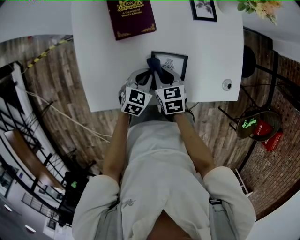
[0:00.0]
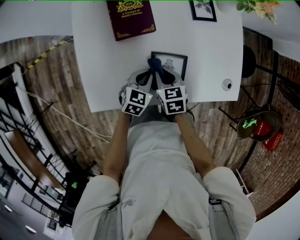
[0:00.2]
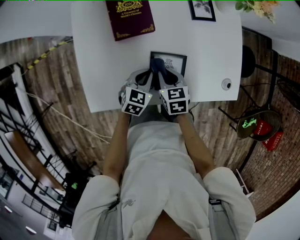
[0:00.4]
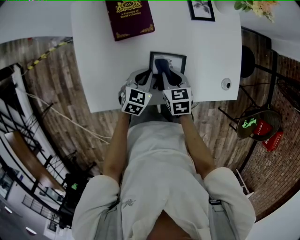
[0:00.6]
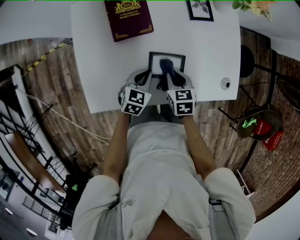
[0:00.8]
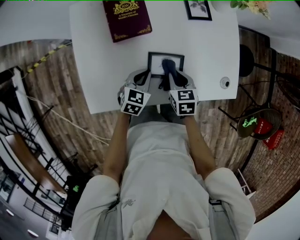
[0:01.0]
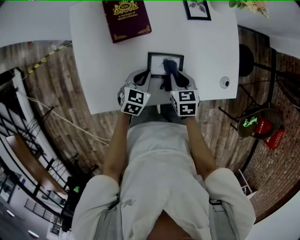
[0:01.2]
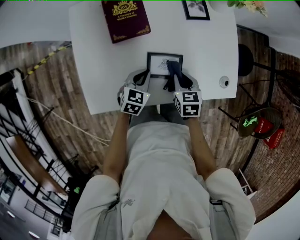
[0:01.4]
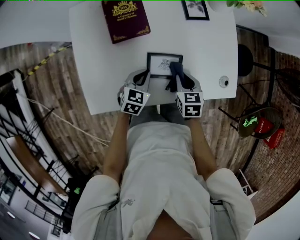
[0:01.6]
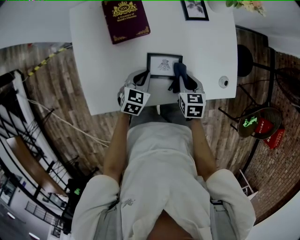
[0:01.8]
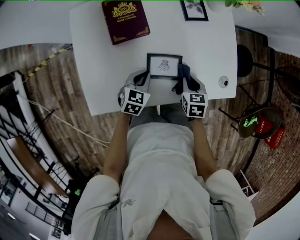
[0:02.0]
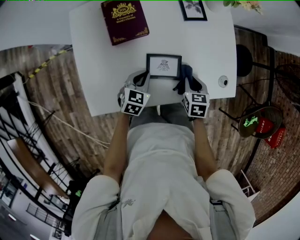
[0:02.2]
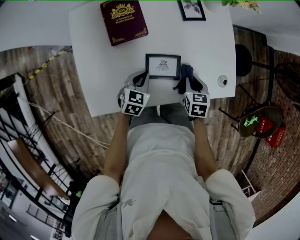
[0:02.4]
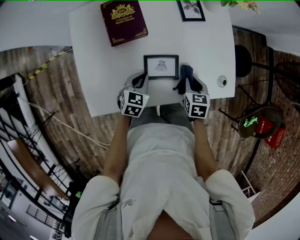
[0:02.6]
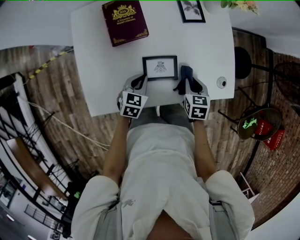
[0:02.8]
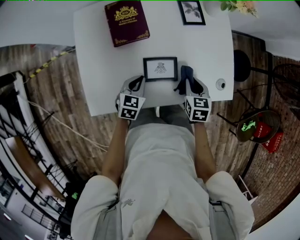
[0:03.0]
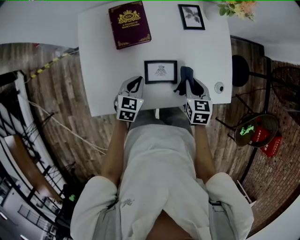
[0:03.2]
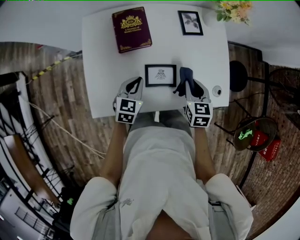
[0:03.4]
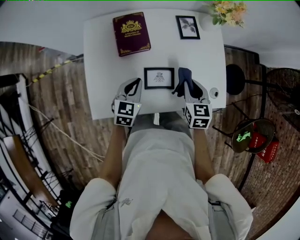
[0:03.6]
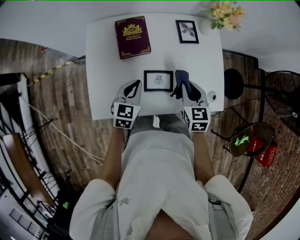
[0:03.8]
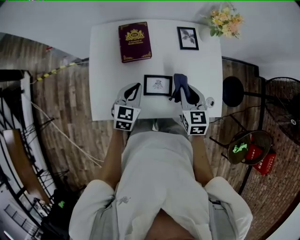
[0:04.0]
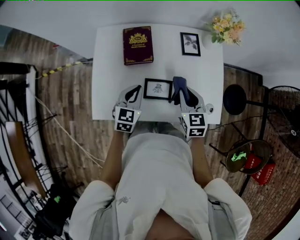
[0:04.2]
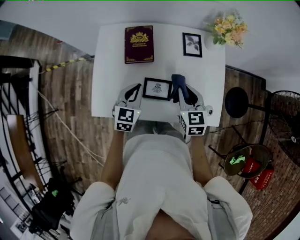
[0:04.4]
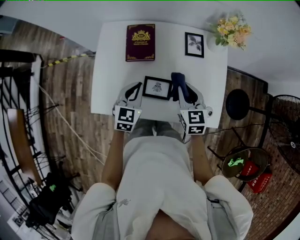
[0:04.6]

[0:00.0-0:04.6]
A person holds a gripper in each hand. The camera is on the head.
0.0 to 1.6 s: The right gripper goes about 10 cm to the right.
1.6 to 3.0 s: The right gripper shifts by about 5 cm.
3.0 to 4.6 s: The left gripper moves upward, roughly 15 cm, and changes its angle by roughly 20 degrees. Meanwhile the right gripper heads upward and forward, covering roughly 15 cm, and rotates about 30 degrees.

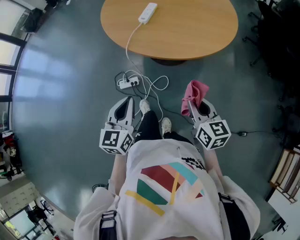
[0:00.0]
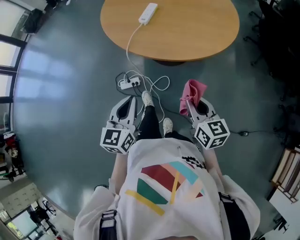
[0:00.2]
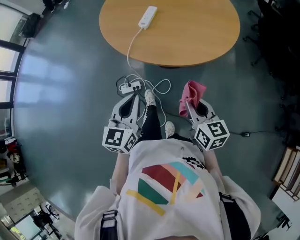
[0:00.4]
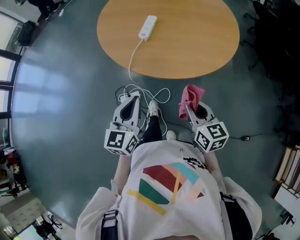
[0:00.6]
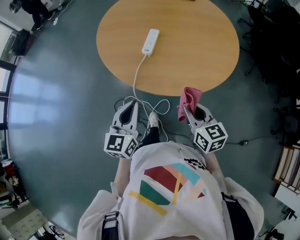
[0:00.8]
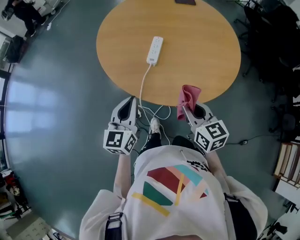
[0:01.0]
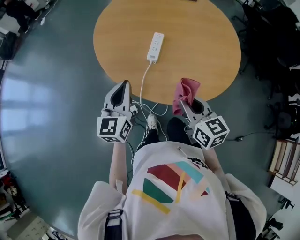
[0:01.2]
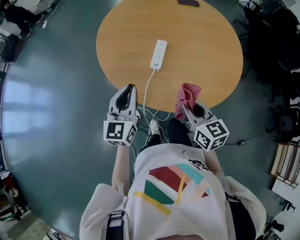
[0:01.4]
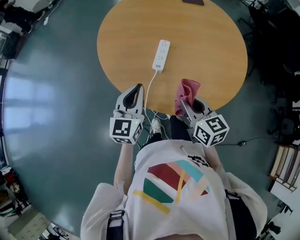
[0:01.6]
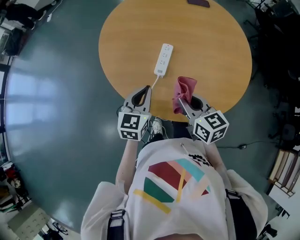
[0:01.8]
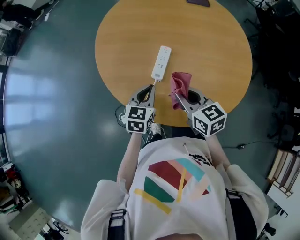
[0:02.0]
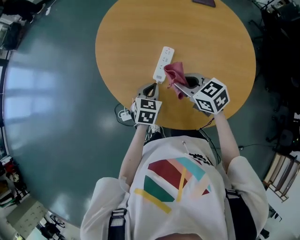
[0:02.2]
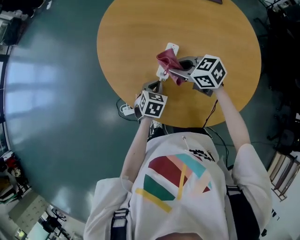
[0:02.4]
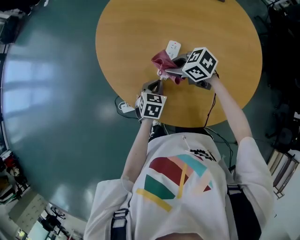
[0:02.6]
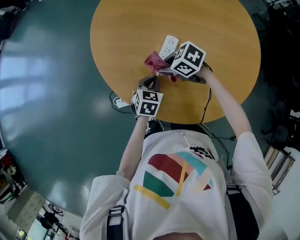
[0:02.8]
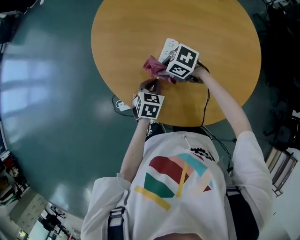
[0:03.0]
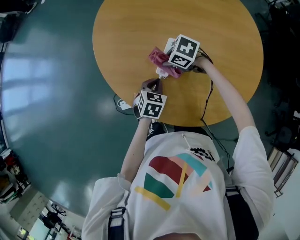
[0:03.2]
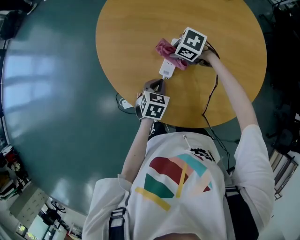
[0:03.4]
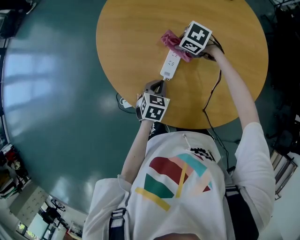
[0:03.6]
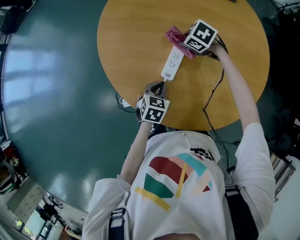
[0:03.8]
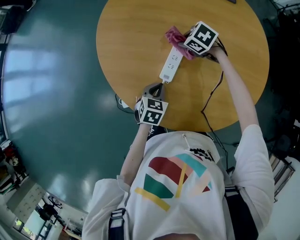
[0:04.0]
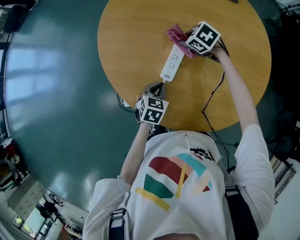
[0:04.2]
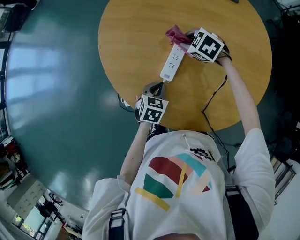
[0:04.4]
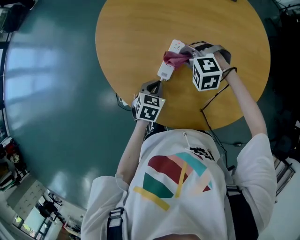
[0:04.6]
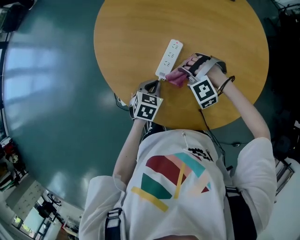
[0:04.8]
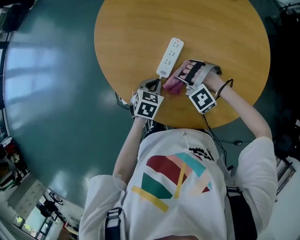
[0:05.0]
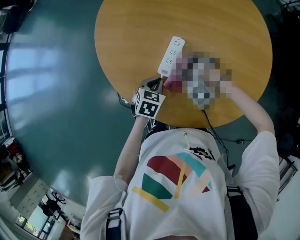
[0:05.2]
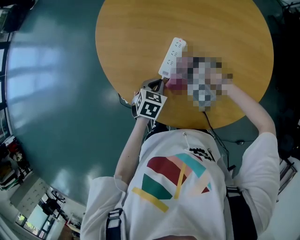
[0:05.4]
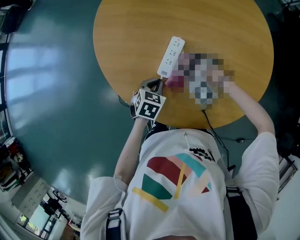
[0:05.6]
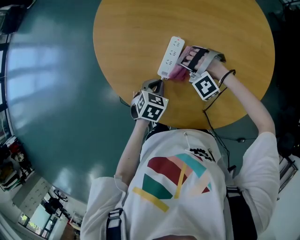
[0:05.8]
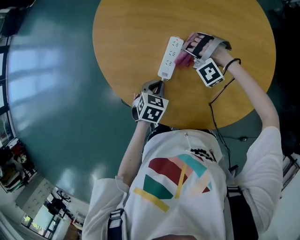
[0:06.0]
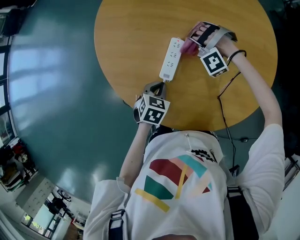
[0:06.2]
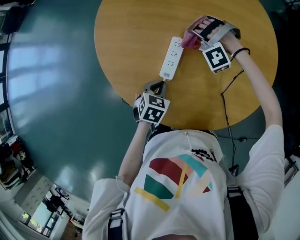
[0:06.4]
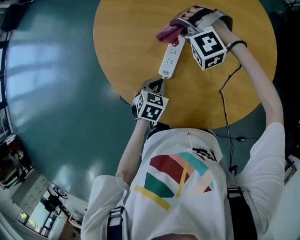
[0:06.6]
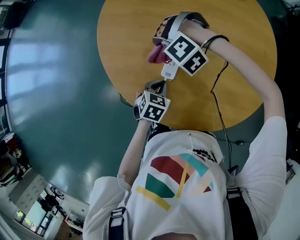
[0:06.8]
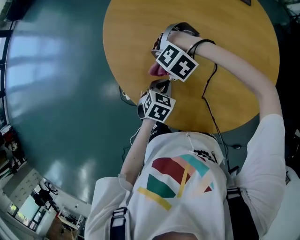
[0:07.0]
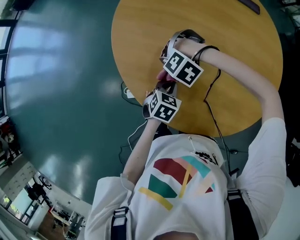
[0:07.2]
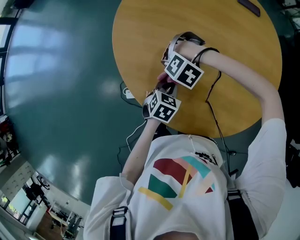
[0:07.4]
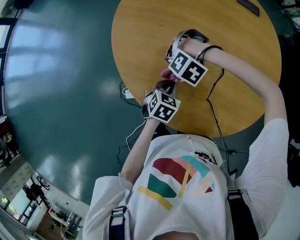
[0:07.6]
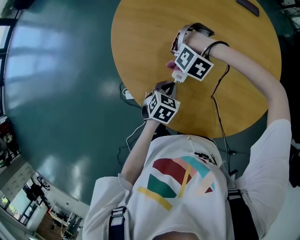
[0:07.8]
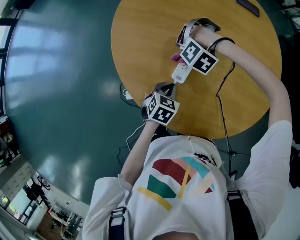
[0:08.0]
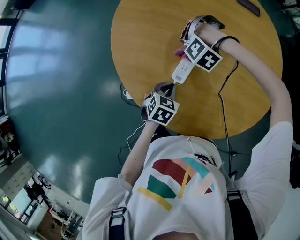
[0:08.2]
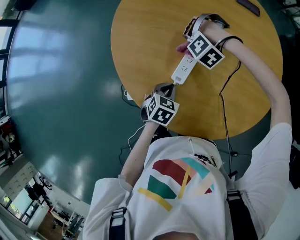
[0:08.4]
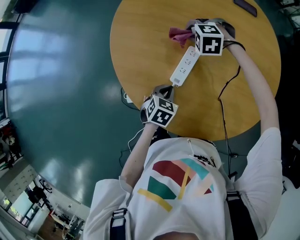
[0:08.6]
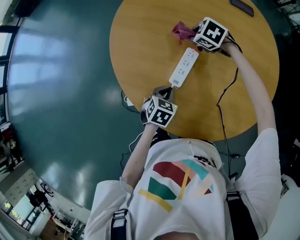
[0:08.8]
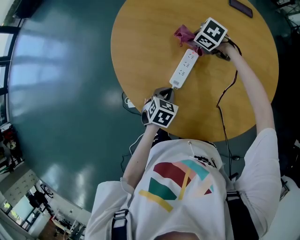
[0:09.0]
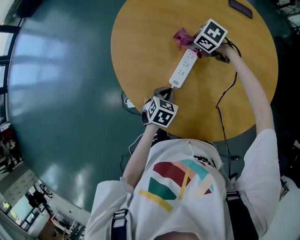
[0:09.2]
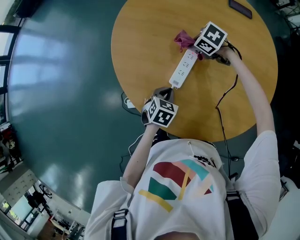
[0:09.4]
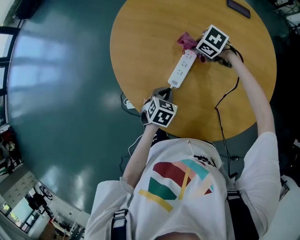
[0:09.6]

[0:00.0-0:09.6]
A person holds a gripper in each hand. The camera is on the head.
0.0 to 1.6 s: The left gripper is displaced forward by approximately 40 cm; the right gripper travels forward and to the left by approximately 40 cm.
1.6 to 3.2 s: The left gripper heads downward, covering roughly 20 cm, and tips its fingers downward by about 40 degrees, while the right gripper moves about 30 cm, and angles its fingers downward, by about 40 degrees.
3.2 to 4.8 s: The right gripper rolls counterclockwise, seen from behind, by about 70 degrees.
4.8 to 6.4 s: The right gripper heads forward, covering about 15 cm.
6.4 to 8.0 s: The right gripper tilts its fingers about 40 degrees downward.
8.0 to 9.6 s: The right gripper moves roughly 5 cm, and rotates around the line of its fingers by roughly 90 degrees, clockwise from behind.

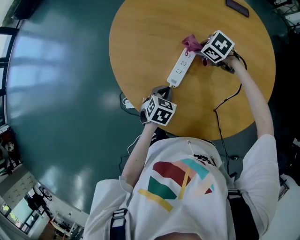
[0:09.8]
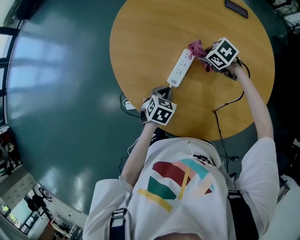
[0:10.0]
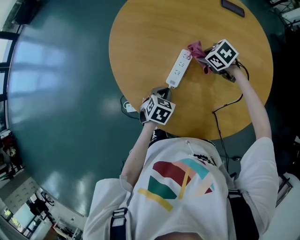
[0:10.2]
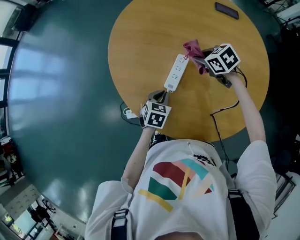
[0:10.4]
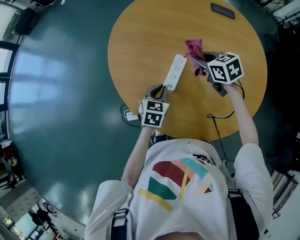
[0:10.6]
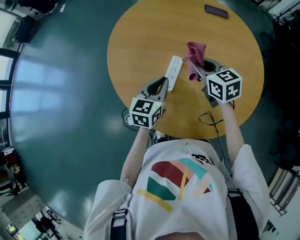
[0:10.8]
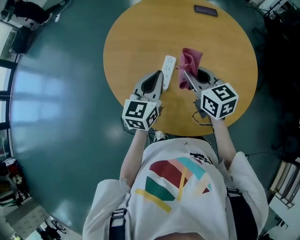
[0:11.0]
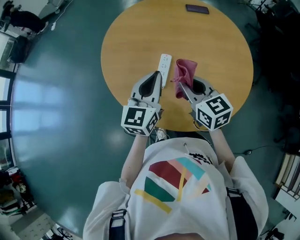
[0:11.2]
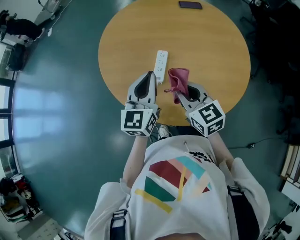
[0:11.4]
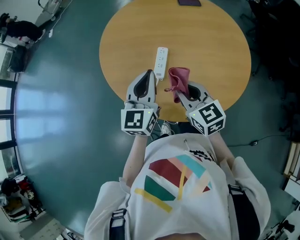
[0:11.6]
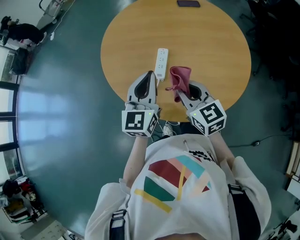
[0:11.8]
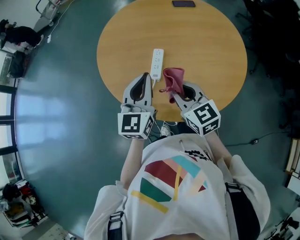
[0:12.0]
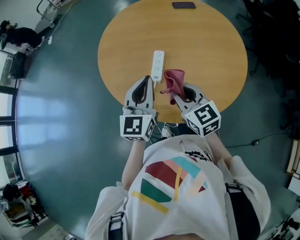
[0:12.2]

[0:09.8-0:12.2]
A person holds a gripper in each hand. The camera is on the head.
9.8 to 11.0 s: The two grippers go some 20 cm upward. The left gripper points its fingers roughly 40 degrees further upward. Meanwhile the right gripper tilts its fingers about 50 degrees upward.
11.0 to 12.2 s: Both grippers travel together backward, roughly 10 cm.

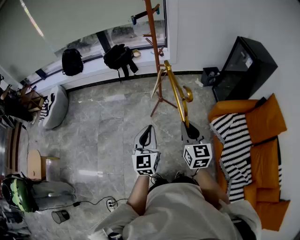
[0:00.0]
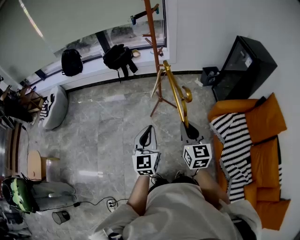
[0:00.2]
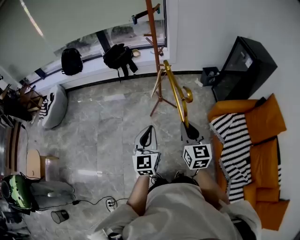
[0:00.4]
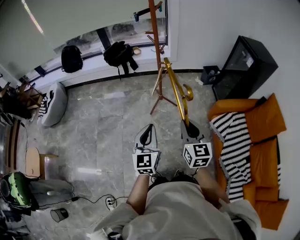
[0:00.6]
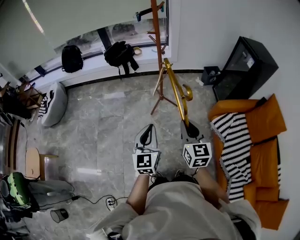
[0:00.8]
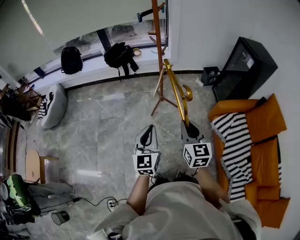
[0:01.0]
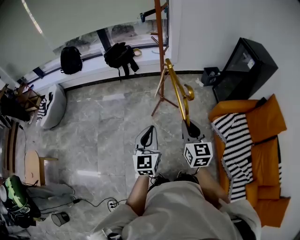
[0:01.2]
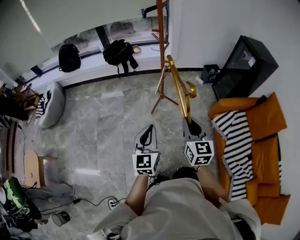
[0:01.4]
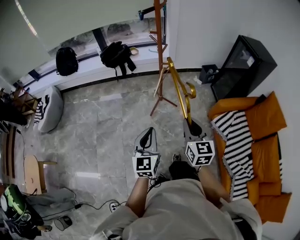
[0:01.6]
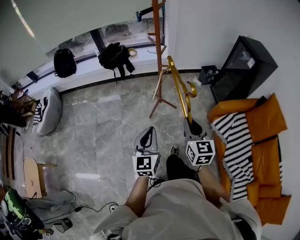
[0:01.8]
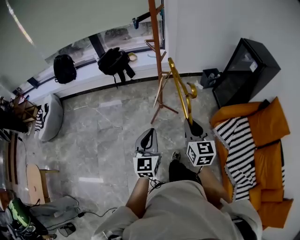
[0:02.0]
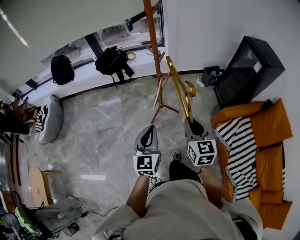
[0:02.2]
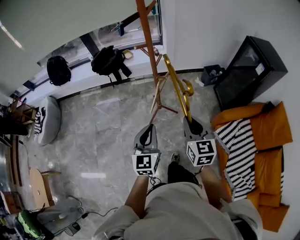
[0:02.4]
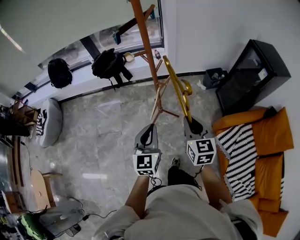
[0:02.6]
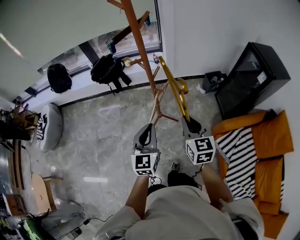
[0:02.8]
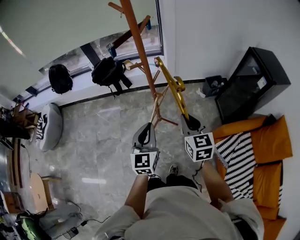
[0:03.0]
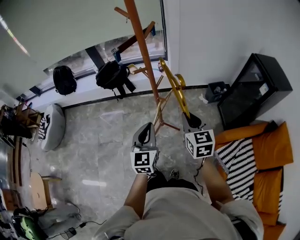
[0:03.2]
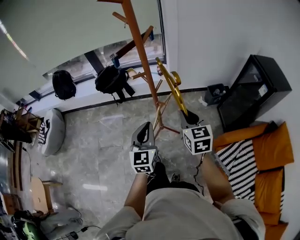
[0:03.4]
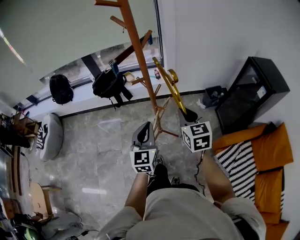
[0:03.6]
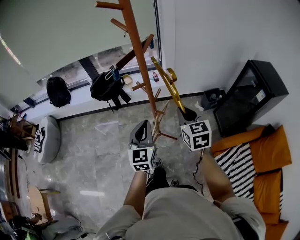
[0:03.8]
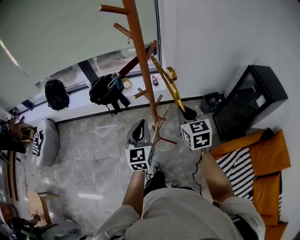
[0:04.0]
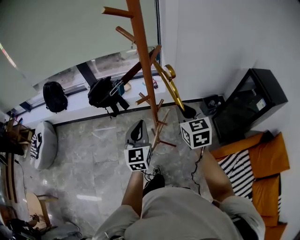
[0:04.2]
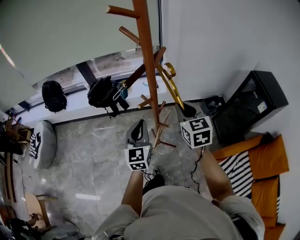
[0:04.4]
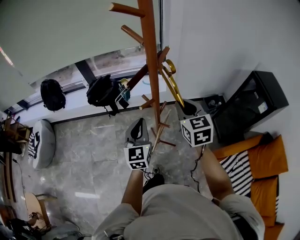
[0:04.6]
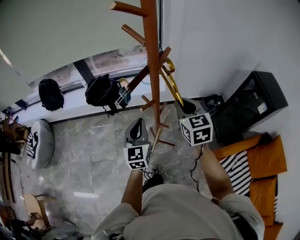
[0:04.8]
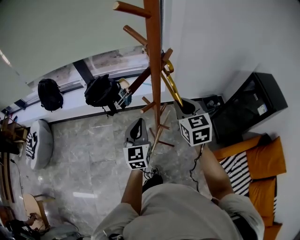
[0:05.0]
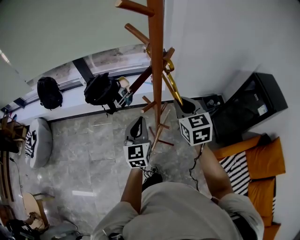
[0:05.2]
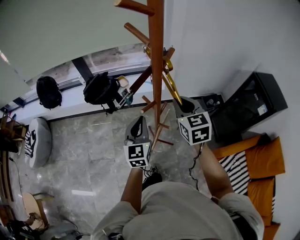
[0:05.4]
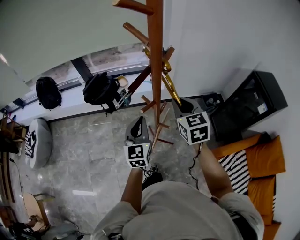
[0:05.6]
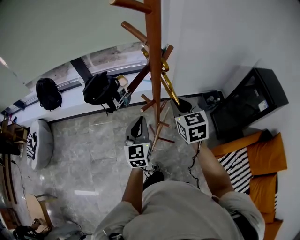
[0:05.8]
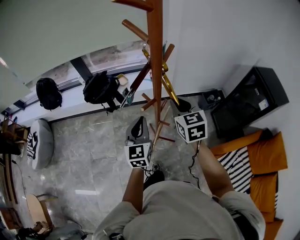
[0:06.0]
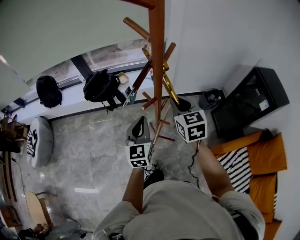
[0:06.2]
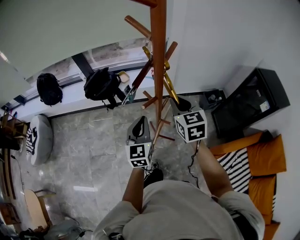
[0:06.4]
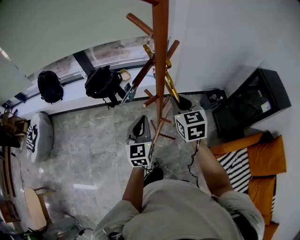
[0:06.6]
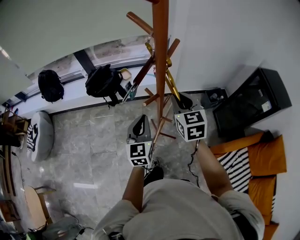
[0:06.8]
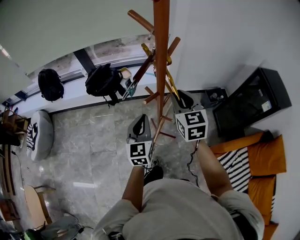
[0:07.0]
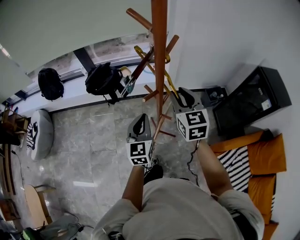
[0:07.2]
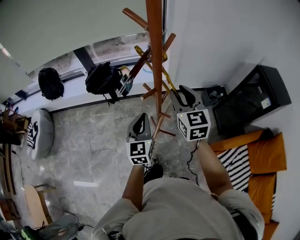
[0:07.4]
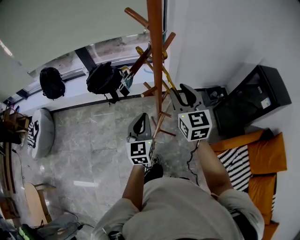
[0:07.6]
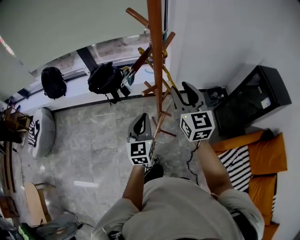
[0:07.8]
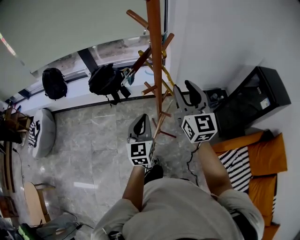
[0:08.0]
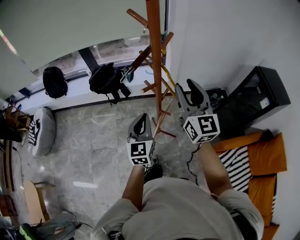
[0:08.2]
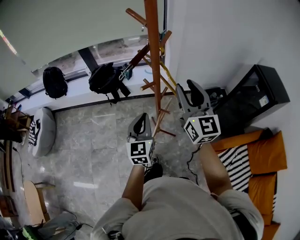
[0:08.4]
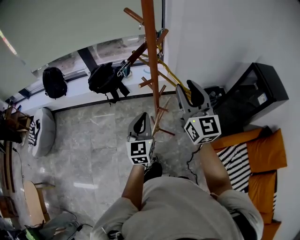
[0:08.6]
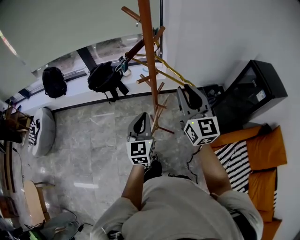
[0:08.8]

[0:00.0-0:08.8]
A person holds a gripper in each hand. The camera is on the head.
0.0 to 1.4 s: The grippers both shift to the left by approximately 5 cm.
1.4 to 3.0 s: Both grippers travel together forward, roughly 35 cm.
3.0 to 4.4 s: Both grippers move forward, approximately 20 cm.
4.4 to 5.8 s: The right gripper ends up some 5 cm from where it was.
5.8 to 7.4 s: The grippers make only small movements.
7.4 to 8.8 s: The right gripper travels backward and upward by roughly 15 cm, while the left gripper goes some 10 cm backward.
